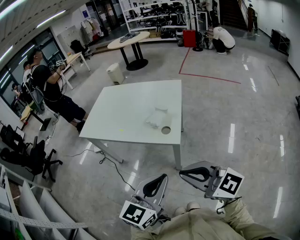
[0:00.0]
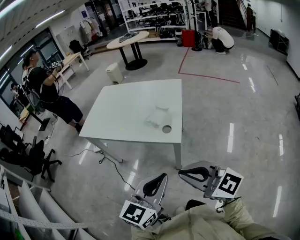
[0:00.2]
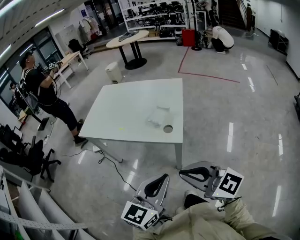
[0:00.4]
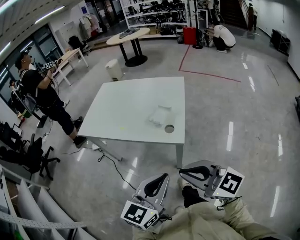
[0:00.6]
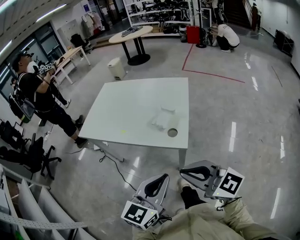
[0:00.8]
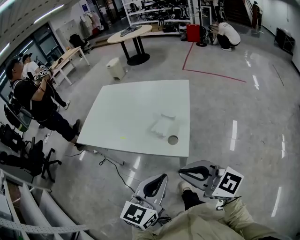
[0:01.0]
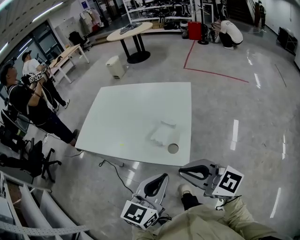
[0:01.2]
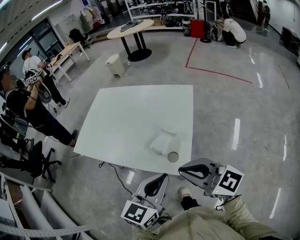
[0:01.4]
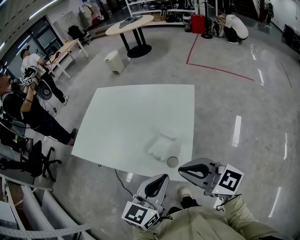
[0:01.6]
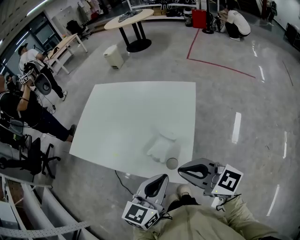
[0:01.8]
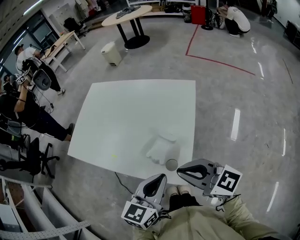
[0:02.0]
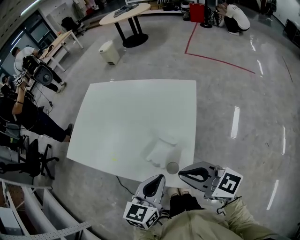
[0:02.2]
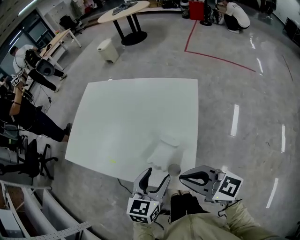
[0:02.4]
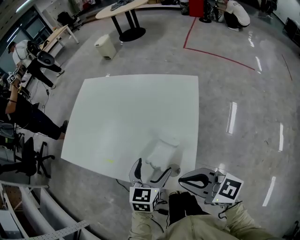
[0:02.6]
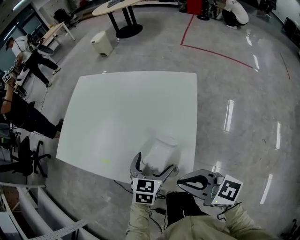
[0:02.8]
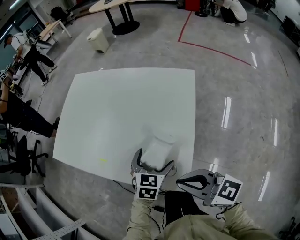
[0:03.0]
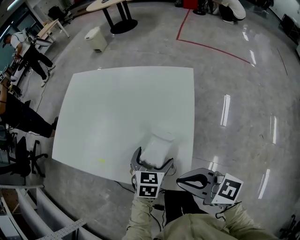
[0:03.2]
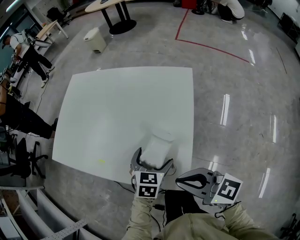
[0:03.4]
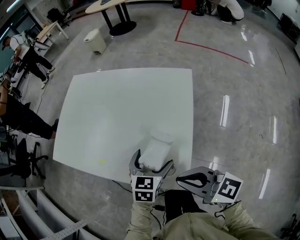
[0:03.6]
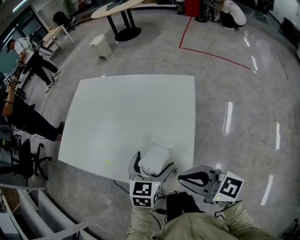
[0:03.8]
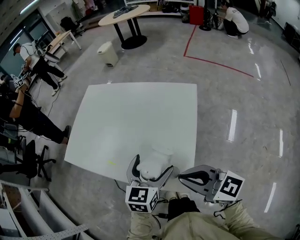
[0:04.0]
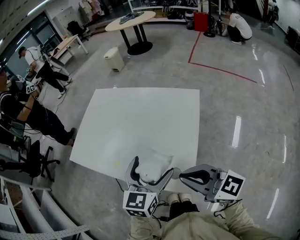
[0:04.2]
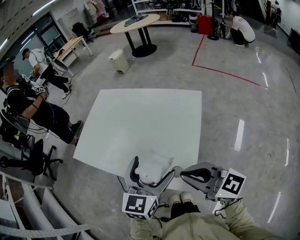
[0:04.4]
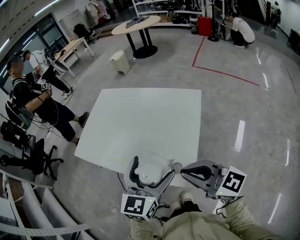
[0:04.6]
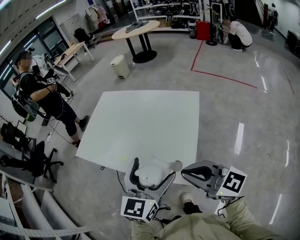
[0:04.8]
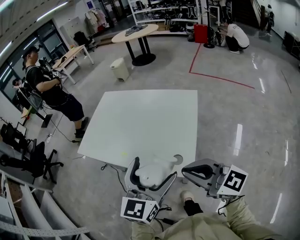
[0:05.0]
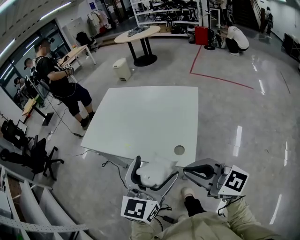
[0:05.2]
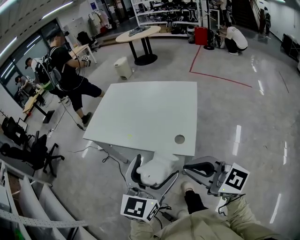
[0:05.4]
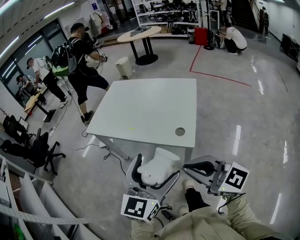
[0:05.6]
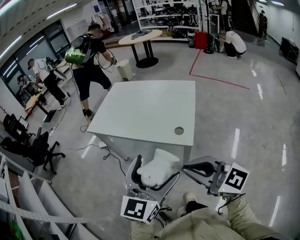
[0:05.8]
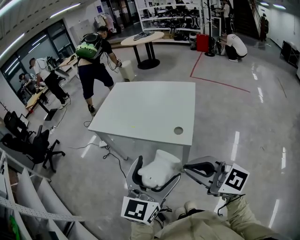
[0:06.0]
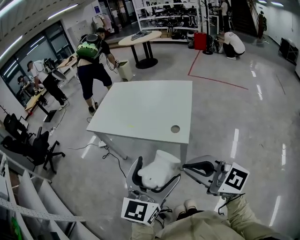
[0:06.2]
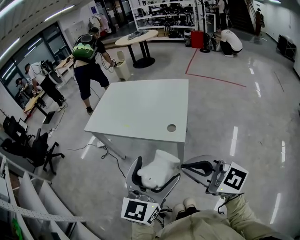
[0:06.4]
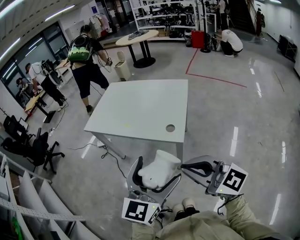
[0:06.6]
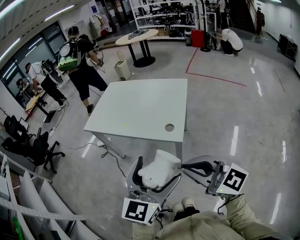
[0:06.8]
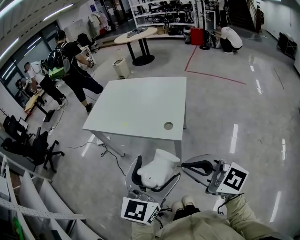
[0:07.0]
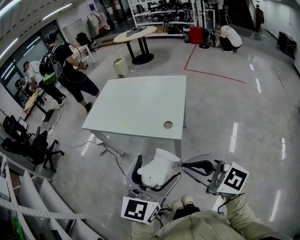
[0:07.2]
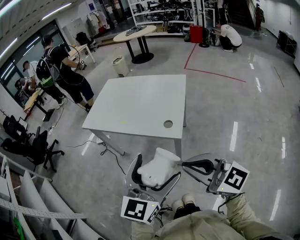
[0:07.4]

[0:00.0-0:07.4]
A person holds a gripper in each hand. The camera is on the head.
0.0 to 1.4 s: The grippers both shift forward by approximately 20 cm.
1.4 to 3.0 s: The left gripper goes some 25 cm downward and forward, swivels roughly 30 degrees, and opens up. The right gripper moves downward and forward, roughly 10 cm.
3.0 to 4.4 s: The left gripper shifts roughly 20 cm upward, and turns by roughly 30 degrees. Meanwhile the right gripper shifts approximately 10 cm upward.
4.4 to 6.0 s: The two grippers go about 30 cm backward and to the left.
6.0 to 7.4 s: The right gripper shifts by roughly 5 cm, while the left gripper changes place by approximately 5 cm.

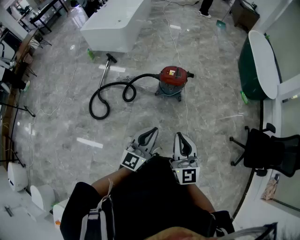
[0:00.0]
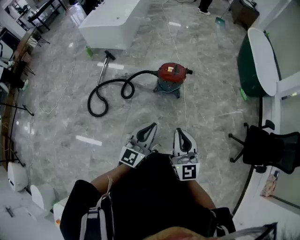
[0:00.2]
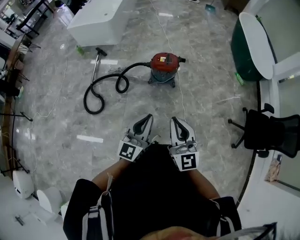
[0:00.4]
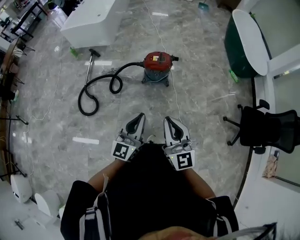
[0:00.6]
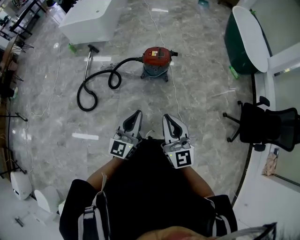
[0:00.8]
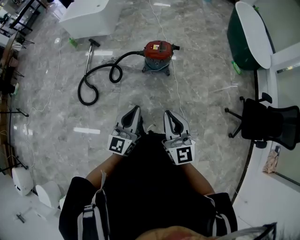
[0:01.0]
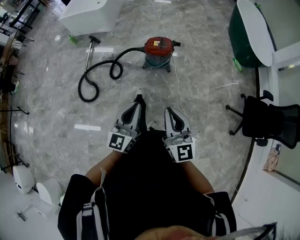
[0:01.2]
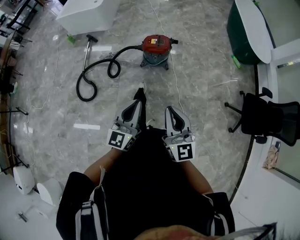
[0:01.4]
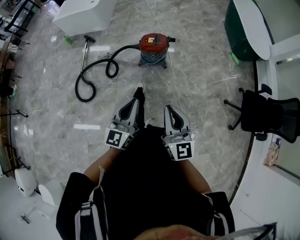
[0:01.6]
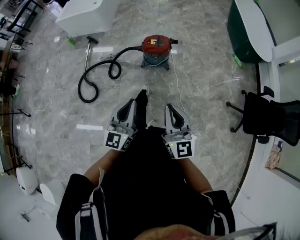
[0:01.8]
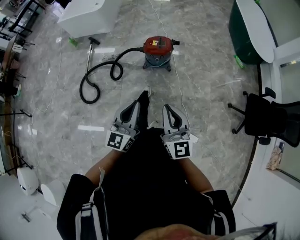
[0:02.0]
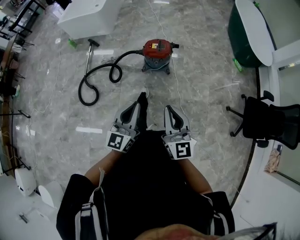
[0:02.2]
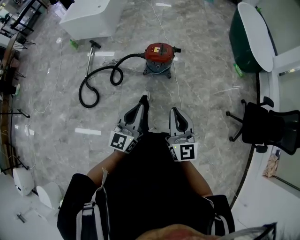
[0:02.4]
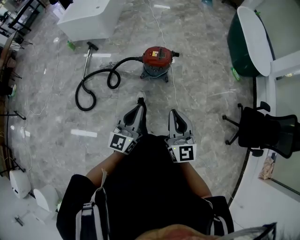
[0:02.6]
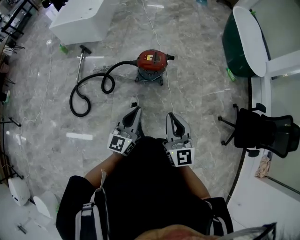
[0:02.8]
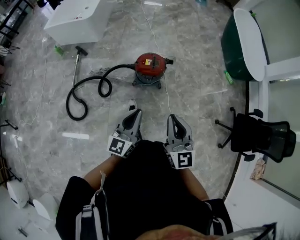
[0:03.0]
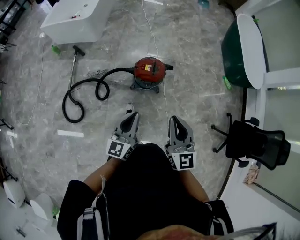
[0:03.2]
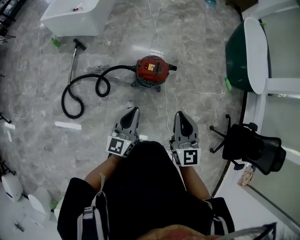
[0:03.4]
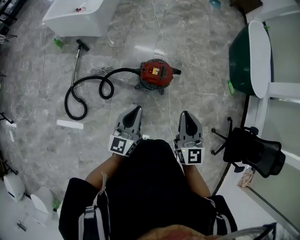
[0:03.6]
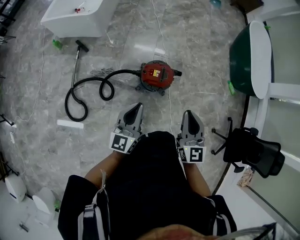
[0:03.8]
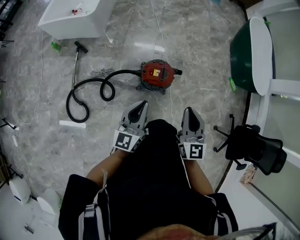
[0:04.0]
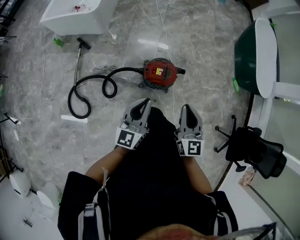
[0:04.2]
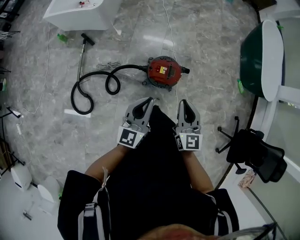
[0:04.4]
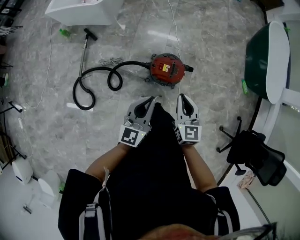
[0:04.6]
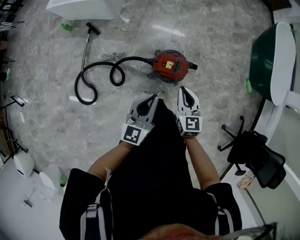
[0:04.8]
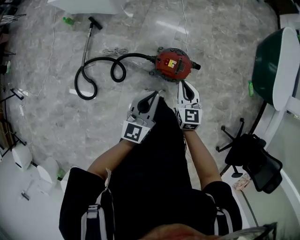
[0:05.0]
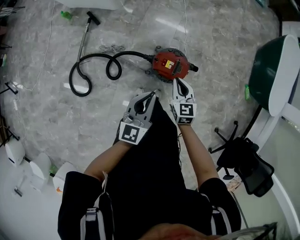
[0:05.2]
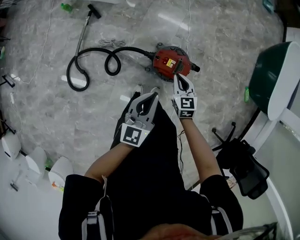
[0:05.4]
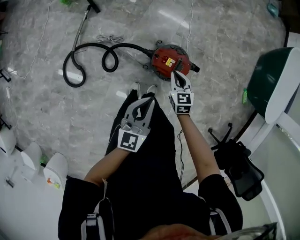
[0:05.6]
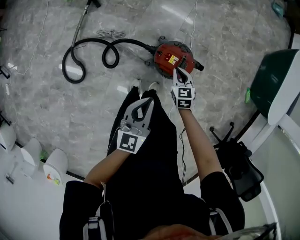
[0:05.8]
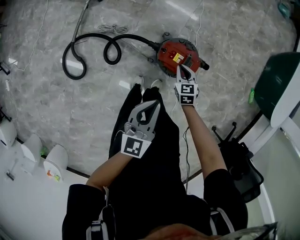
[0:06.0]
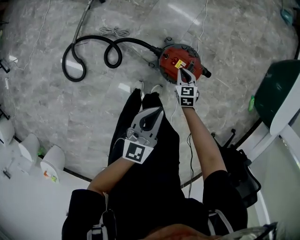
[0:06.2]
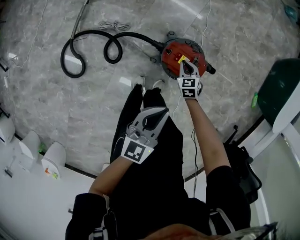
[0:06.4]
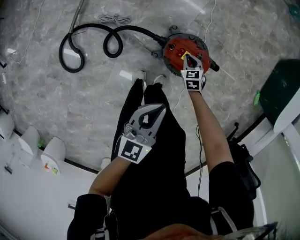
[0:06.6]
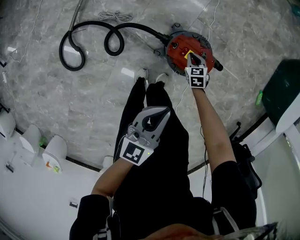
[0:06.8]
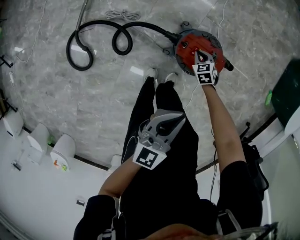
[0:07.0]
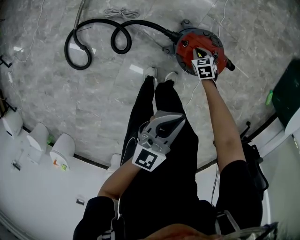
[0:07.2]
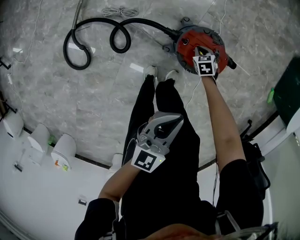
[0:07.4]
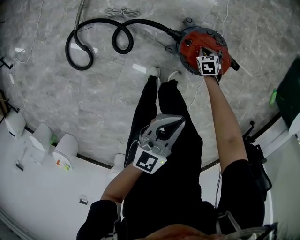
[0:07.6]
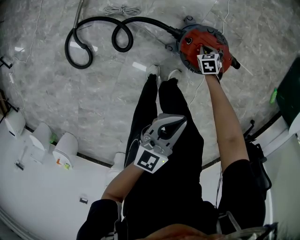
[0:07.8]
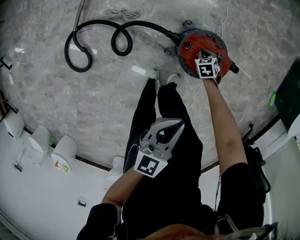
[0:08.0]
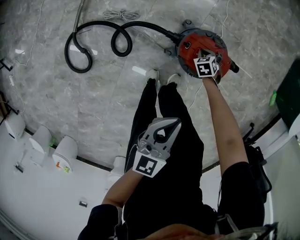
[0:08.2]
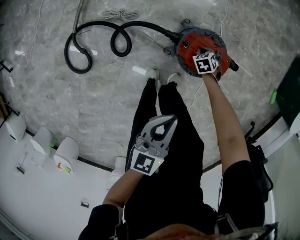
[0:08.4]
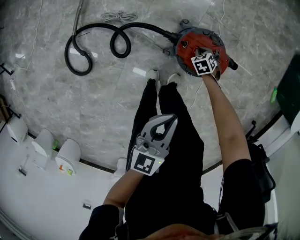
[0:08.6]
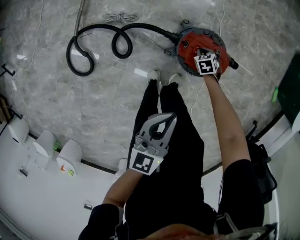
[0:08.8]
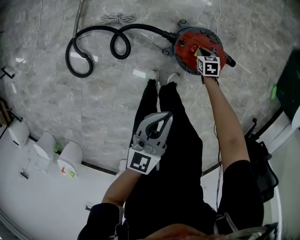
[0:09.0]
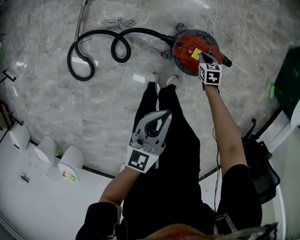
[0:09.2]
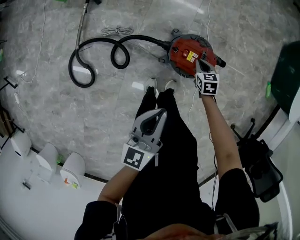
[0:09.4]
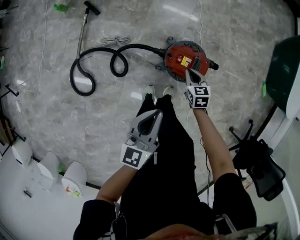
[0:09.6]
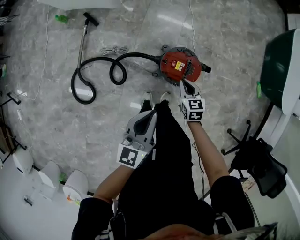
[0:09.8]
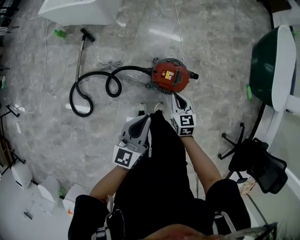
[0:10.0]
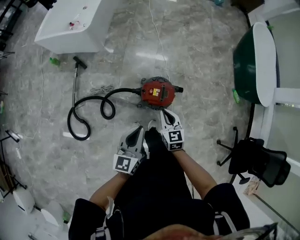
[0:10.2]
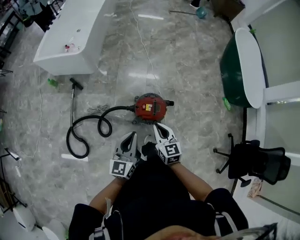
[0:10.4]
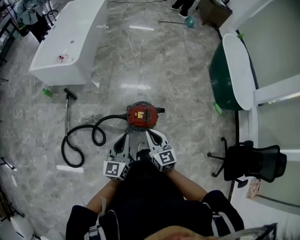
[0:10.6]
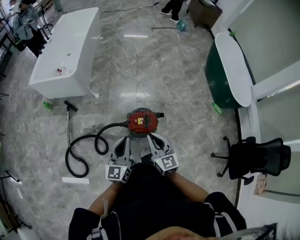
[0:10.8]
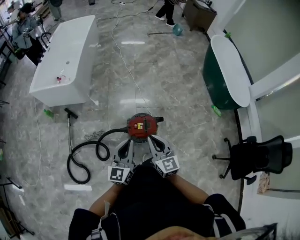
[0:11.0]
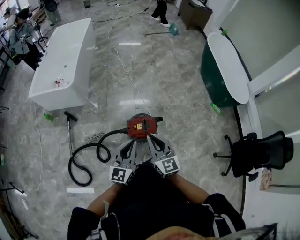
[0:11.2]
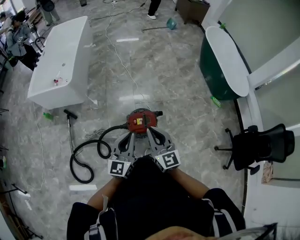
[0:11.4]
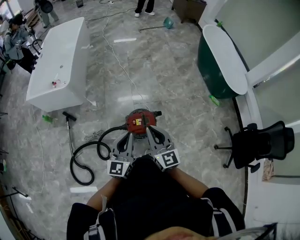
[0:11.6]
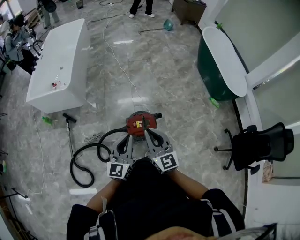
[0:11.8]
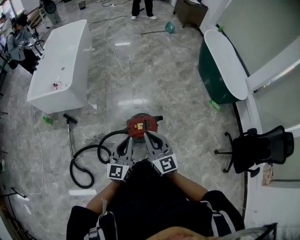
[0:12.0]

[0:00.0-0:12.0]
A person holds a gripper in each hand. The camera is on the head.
0.0 to 1.6 s: The right gripper is displaced to the right by approximately 5 cm.
1.6 to 3.0 s: The grippers both shift forward by about 20 cm.
3.0 to 4.4 s: The two grippers go some 25 cm forward.
4.4 to 6.0 s: The left gripper is displaced downward by about 15 cm; the right gripper moves downward and forward, about 40 cm, and tips its fingers downward by roughly 30 degrees.
6.0 to 7.6 s: The right gripper heads downward, covering roughly 25 cm, and turns by approximately 20 degrees; the left gripper is displaced downward by about 10 cm.
7.6 to 9.0 s: The grippers move only a little.
9.0 to 10.4 s: The right gripper is displaced upward by about 50 cm, and tilts its fingers about 40 degrees upward; the left gripper moves upward, about 20 cm.
10.4 to 12.0 s: The left gripper changes place by about 5 cm. The right gripper shifts some 15 cm upward, and turns by about 20 degrees.

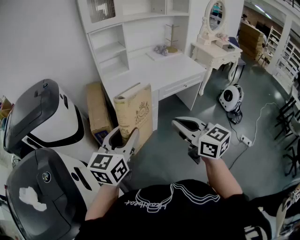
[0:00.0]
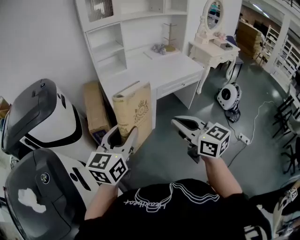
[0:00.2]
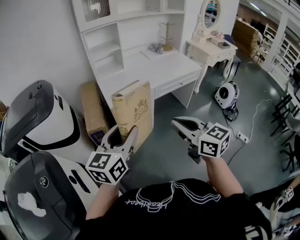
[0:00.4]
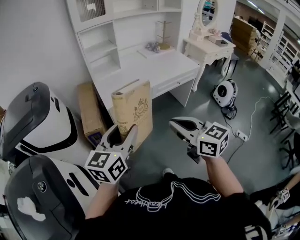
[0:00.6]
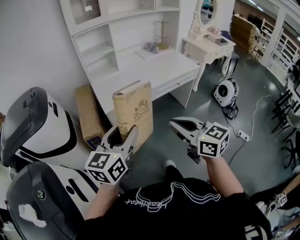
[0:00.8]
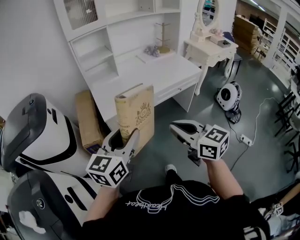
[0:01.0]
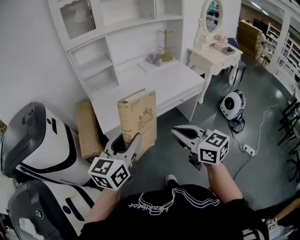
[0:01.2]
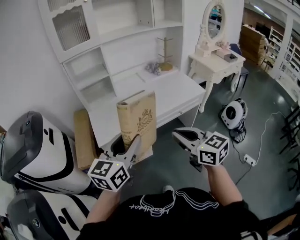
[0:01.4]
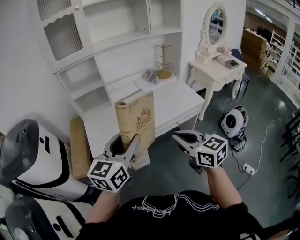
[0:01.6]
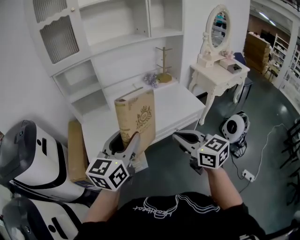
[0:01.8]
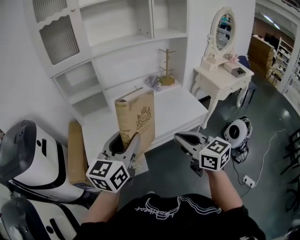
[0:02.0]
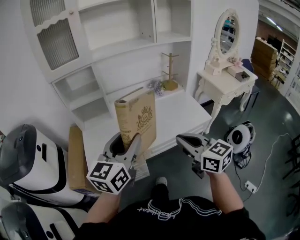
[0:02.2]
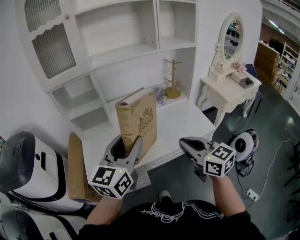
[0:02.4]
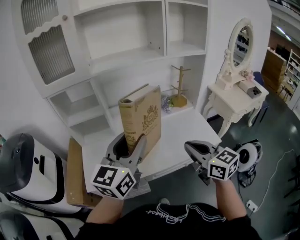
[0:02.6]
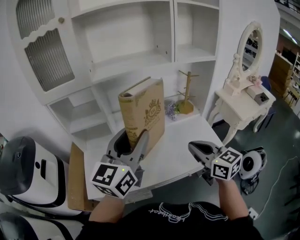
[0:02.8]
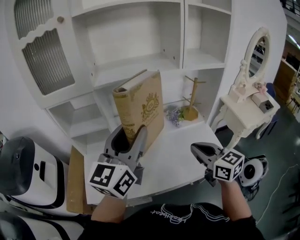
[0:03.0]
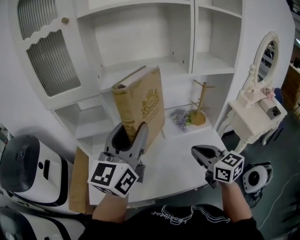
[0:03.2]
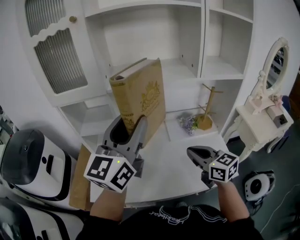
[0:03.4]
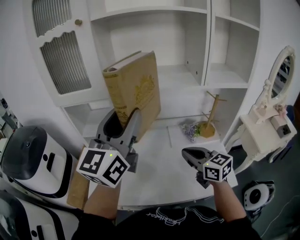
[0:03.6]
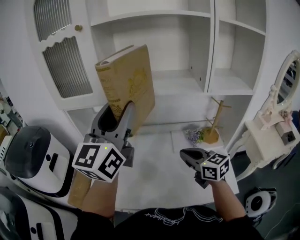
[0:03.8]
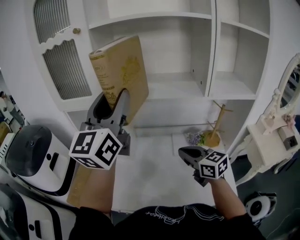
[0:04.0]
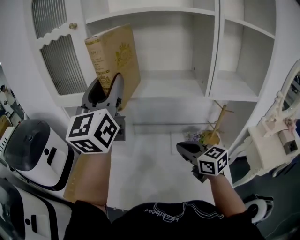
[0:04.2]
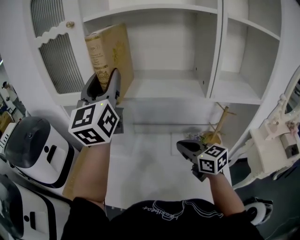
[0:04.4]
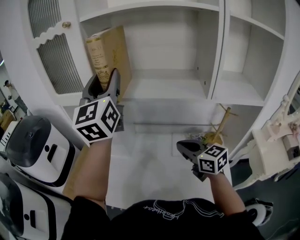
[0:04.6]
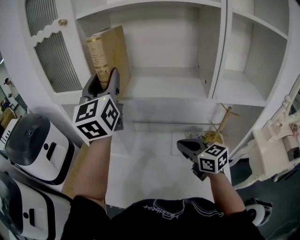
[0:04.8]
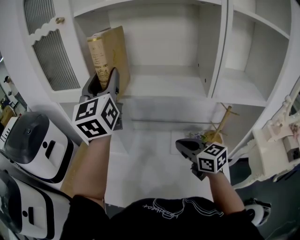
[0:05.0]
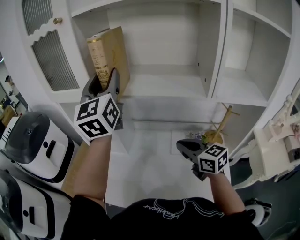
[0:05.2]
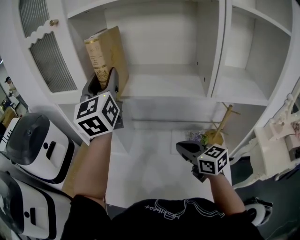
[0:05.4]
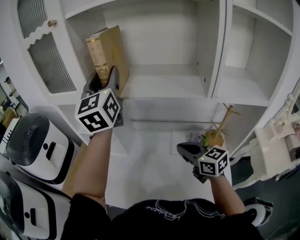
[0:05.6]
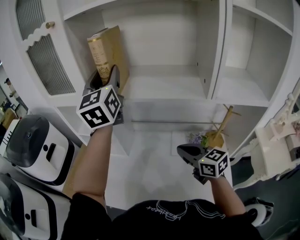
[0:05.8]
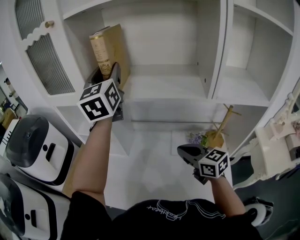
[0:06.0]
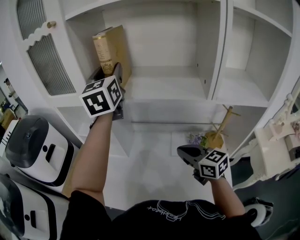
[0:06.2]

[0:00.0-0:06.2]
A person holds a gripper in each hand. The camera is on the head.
0.0 to 1.6 s: The two grippers go approximately 35 cm forward and to the right.
1.6 to 3.2 s: Both grippers move forward, about 35 cm. The left gripper swivels roughly 20 degrees.
3.2 to 4.6 s: The left gripper shifts by about 25 cm, and rotates about 40 degrees; the right gripper ends up approximately 15 cm from where it was, and rotates roughly 20 degrees.
4.6 to 6.2 s: The left gripper is displaced forward by approximately 10 cm.
